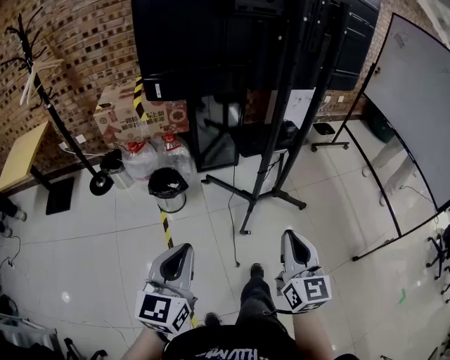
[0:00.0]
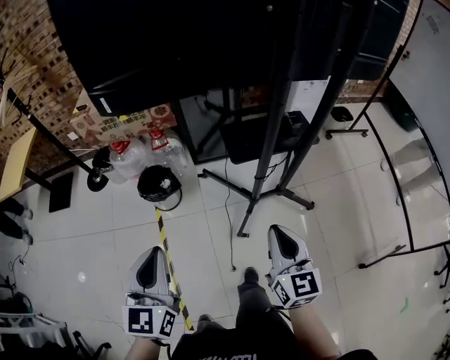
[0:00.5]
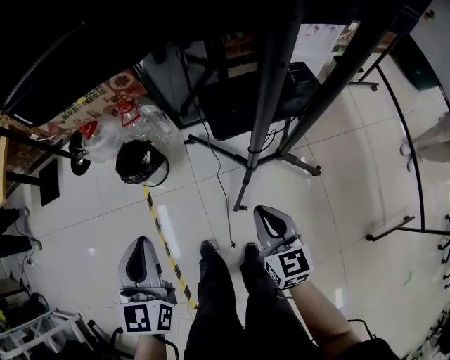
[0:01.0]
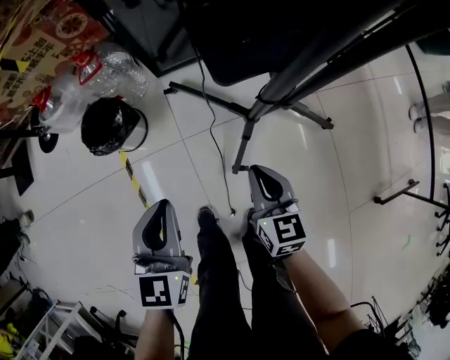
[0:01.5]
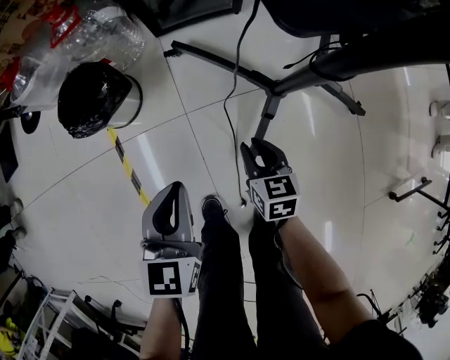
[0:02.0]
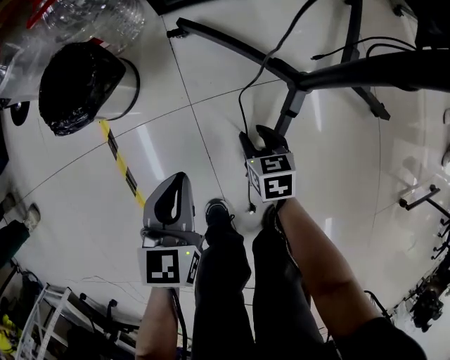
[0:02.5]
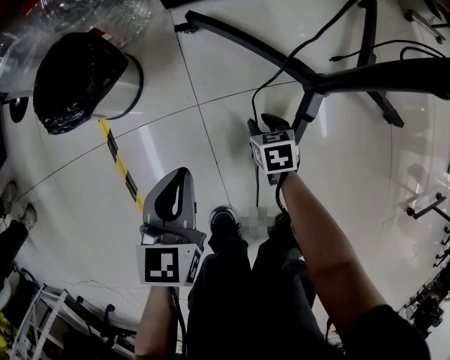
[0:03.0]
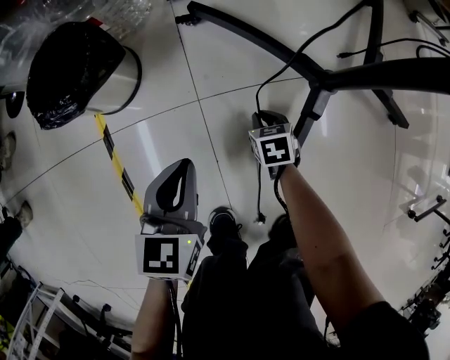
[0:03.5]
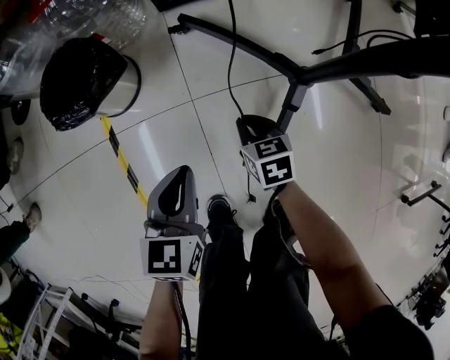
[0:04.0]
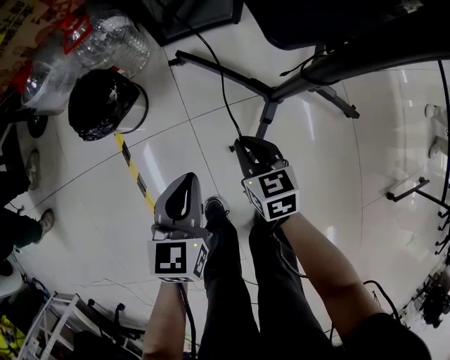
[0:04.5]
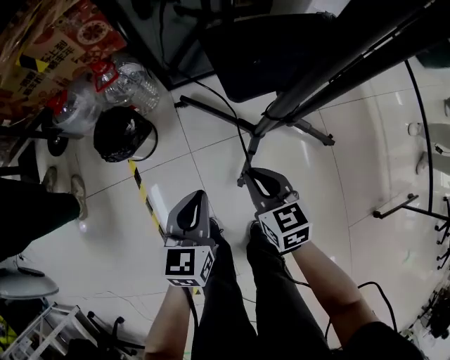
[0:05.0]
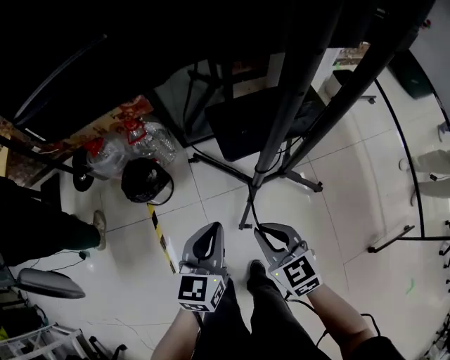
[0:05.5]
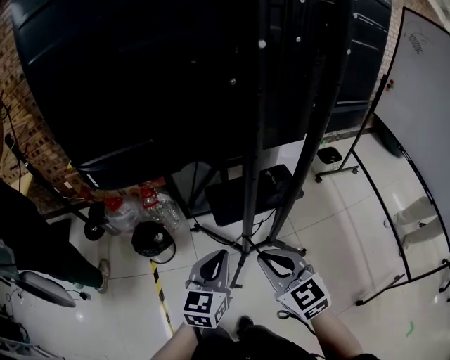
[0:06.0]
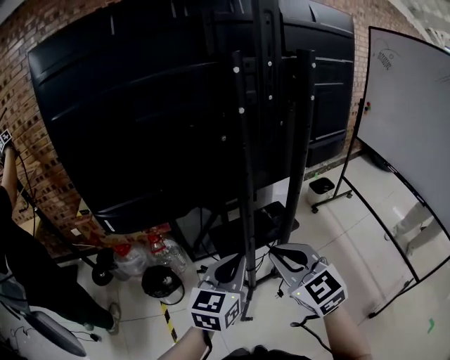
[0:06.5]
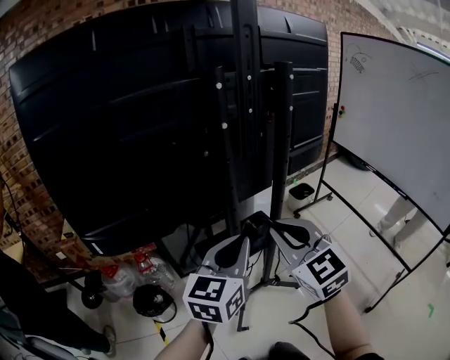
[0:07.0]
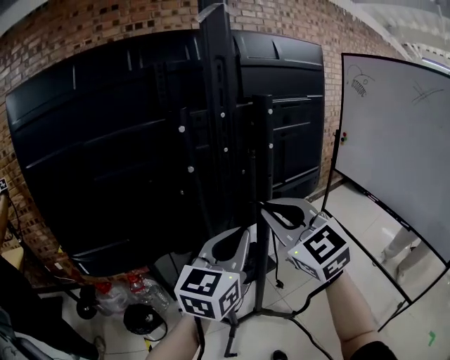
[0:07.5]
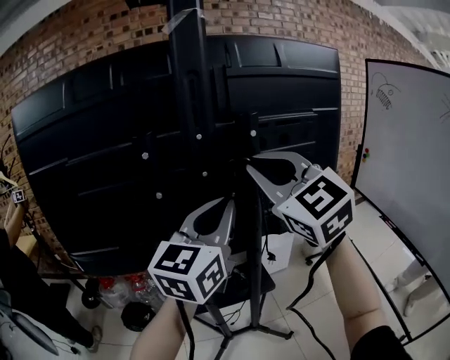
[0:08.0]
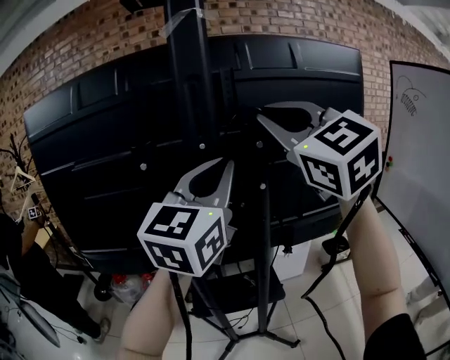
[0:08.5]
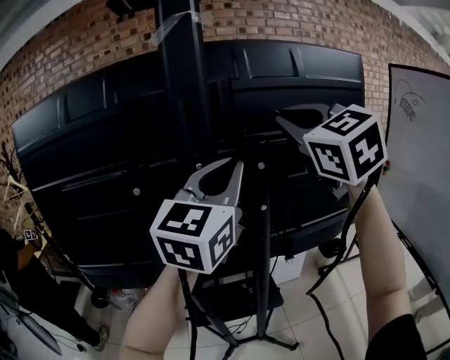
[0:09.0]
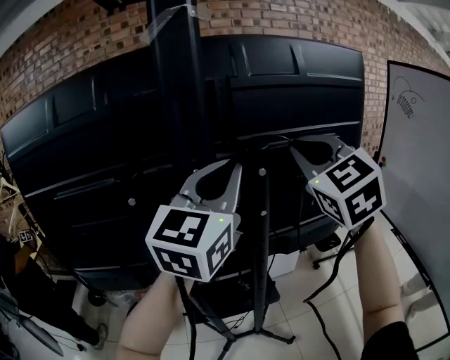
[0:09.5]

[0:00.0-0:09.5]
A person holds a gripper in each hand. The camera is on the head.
0:00.0 to 0:02.0: Both grippers move downward and forward, roughly 60 cm. The right gripper tips its fingers downward by about 40 degrees, and opens up. The left gripper changes its angle by approximately 20 degrees.
0:02.0 to 0:04.0: The right gripper travels downward and to the left by approximately 15 cm. Meanwhile the left gripper travels downward by about 15 cm.
0:04.0 to 0:05.5: The two grippers go roughly 40 cm upward. The right gripper rotates approximately 30 degrees.
0:05.5 to 0:07.5: The right gripper heads upward, covering approximately 50 cm, and swivels about 40 degrees, while the left gripper heads upward and to the right, covering about 50 cm, and rotates about 30 degrees.
0:07.5 to 0:09.5: The right gripper heads forward, upward and to the right, covering approximately 30 cm; the left gripper heads upward and forward, covering approximately 25 cm, and turns by some 20 degrees.

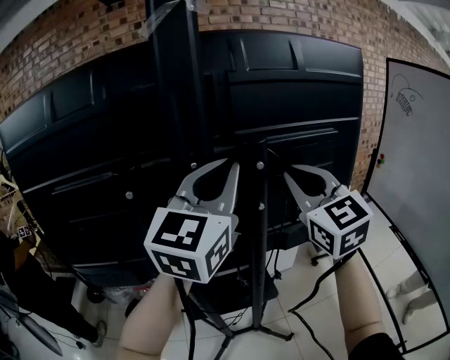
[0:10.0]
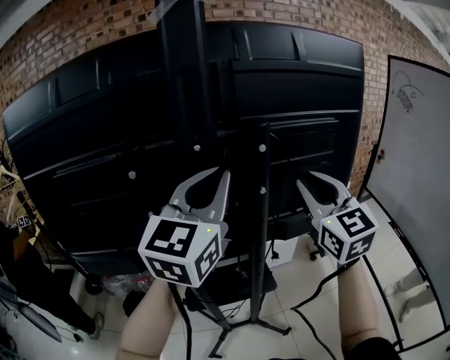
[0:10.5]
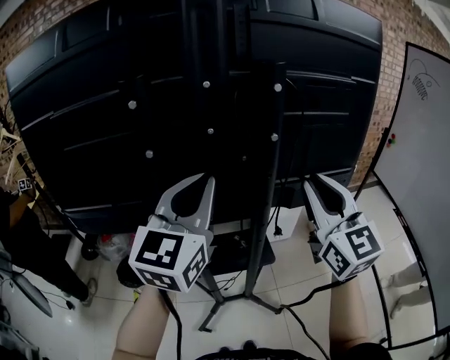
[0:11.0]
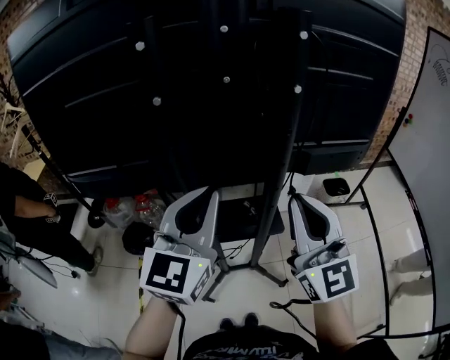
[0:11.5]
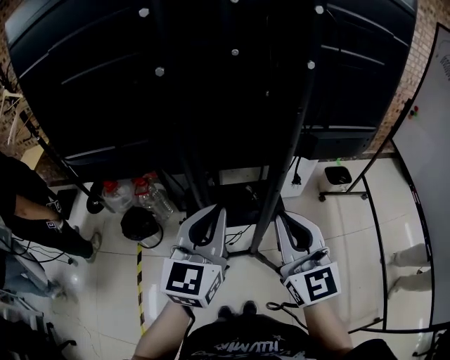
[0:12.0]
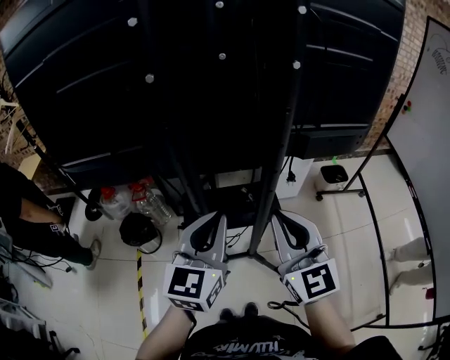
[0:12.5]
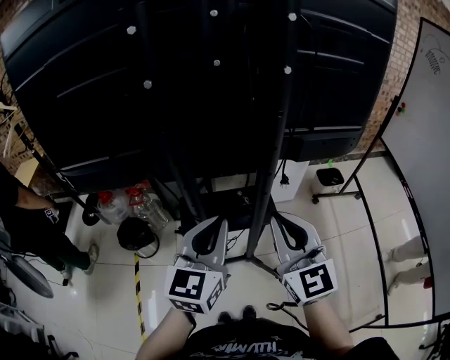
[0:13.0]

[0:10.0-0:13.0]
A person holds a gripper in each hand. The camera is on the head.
0:10.0 to 0:11.5: The left gripper moves downward, backward and to the left, roughly 25 cm, while the right gripper is displaced downward and backward by roughly 25 cm.
0:11.5 to 0:13.0: The two grippers go about 10 cm downward.

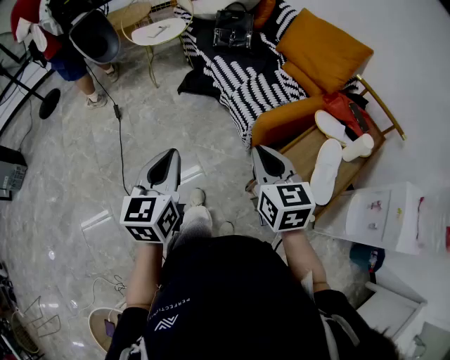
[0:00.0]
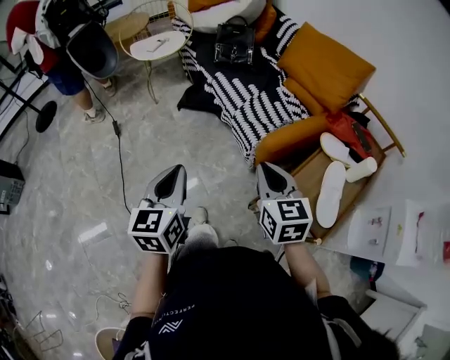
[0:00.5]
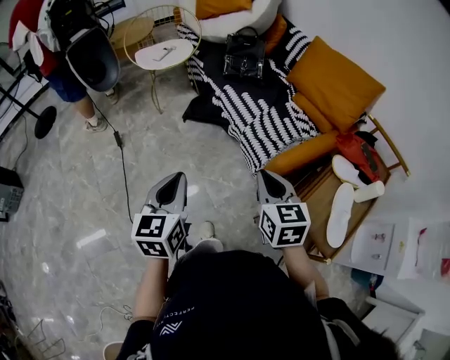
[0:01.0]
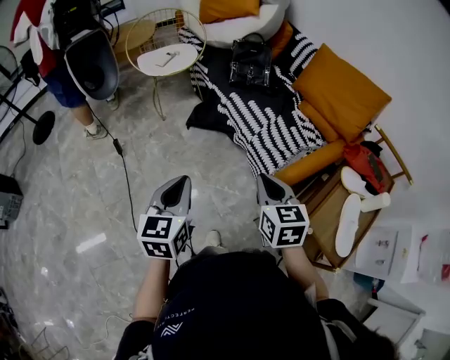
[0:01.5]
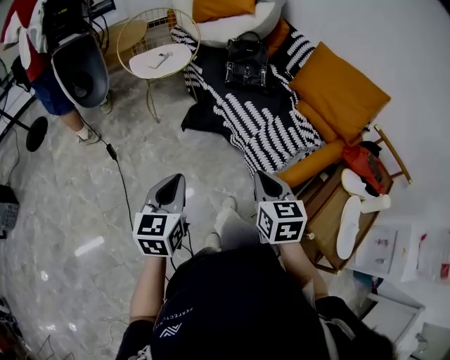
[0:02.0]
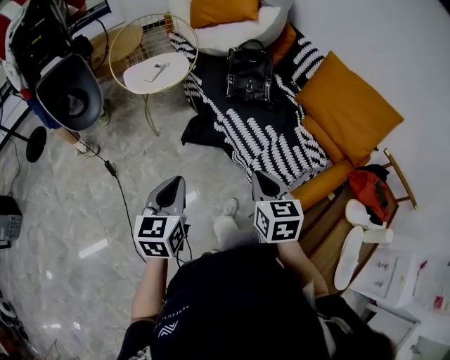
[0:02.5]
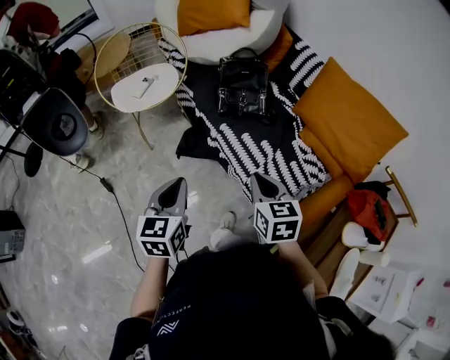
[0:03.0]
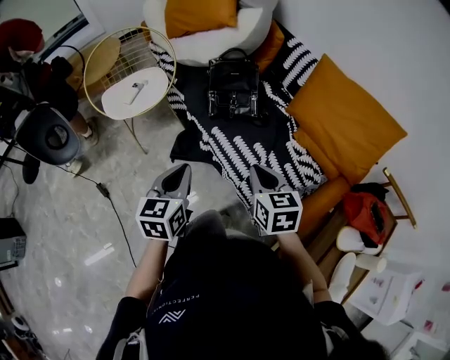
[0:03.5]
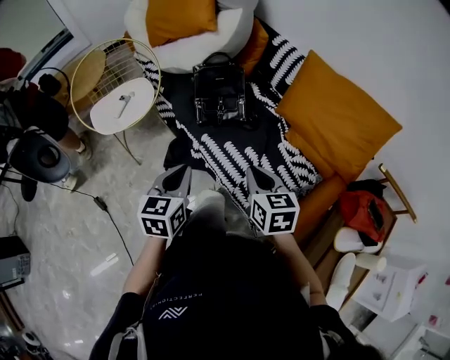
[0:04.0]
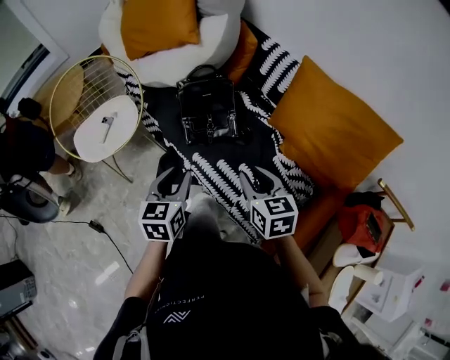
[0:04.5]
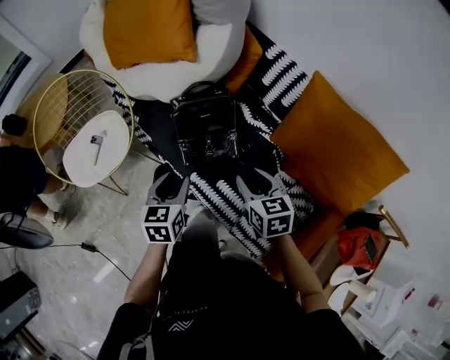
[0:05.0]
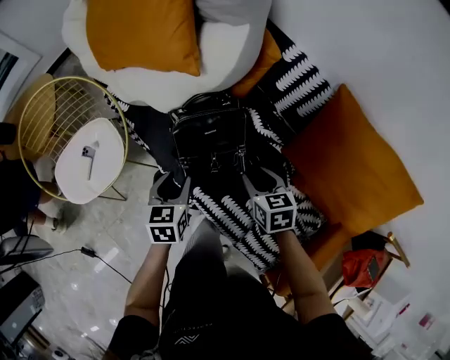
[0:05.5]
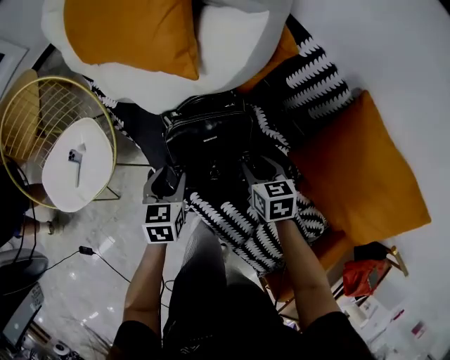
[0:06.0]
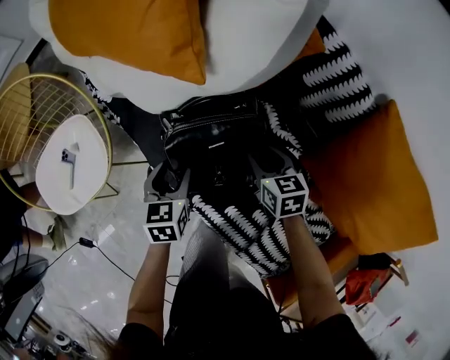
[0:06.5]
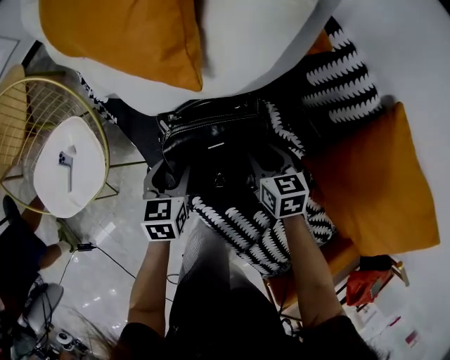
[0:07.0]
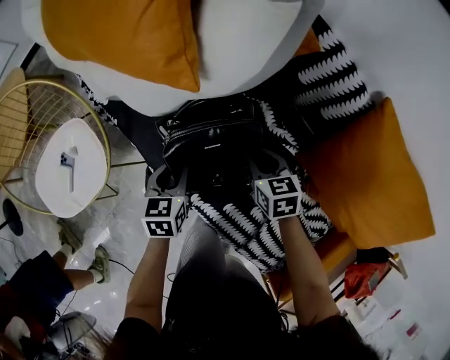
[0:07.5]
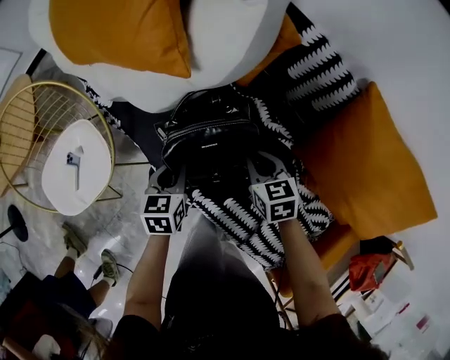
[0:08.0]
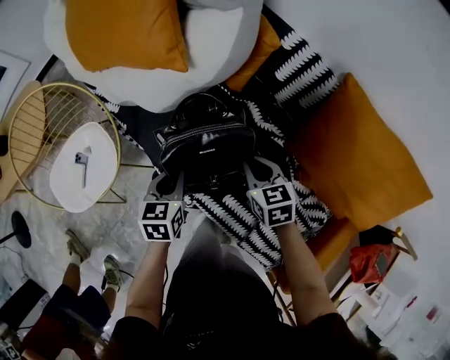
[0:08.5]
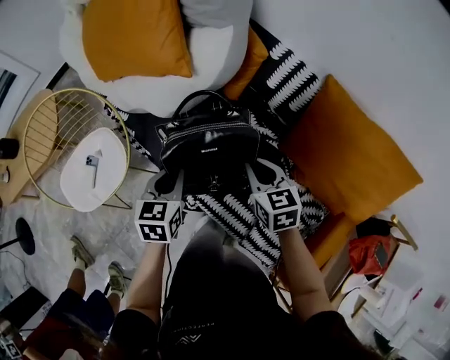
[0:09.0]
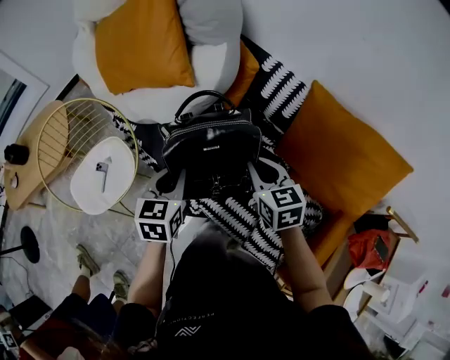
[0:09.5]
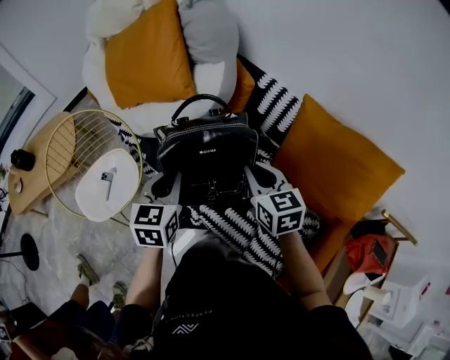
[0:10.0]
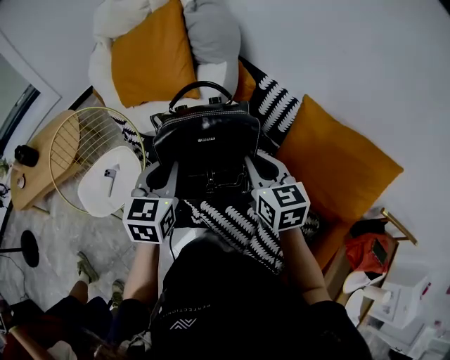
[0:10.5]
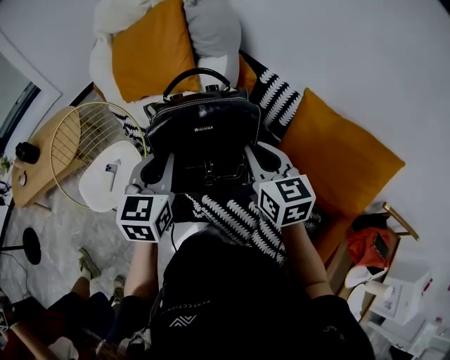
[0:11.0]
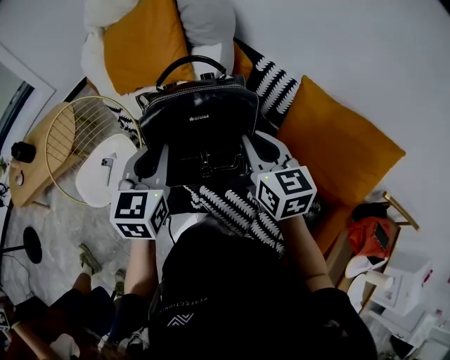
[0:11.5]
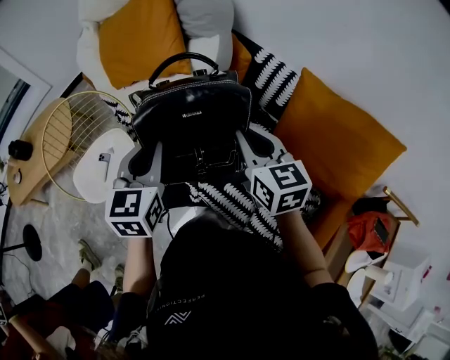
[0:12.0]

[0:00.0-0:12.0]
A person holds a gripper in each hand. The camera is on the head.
0:00.0 to 0:02.0: The grippers both shift forward and to the left by some 25 cm.
0:02.0 to 0:04.0: Both grippers move forward, approximately 35 cm.
0:04.0 to 0:06.0: The grippers both shift forward and downward by some 40 cm. The left gripper opens. Meanwhile the right gripper opens its fingers.
0:06.0 to 0:08.0: The right gripper closes. Meanwhile the left gripper closes up.
0:08.0 to 0:10.0: The two grippers go approximately 25 cm upward. The left gripper turns by some 20 degrees. Meanwhile the right gripper turns by some 20 degrees.
0:10.0 to 0:12.0: The grippers both shift upward by approximately 5 cm.

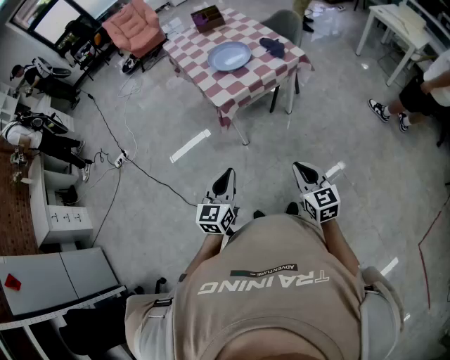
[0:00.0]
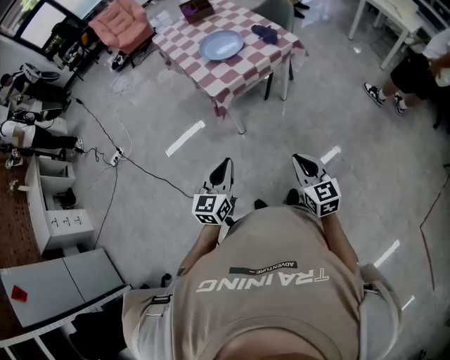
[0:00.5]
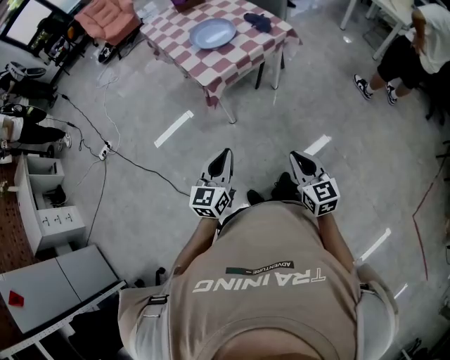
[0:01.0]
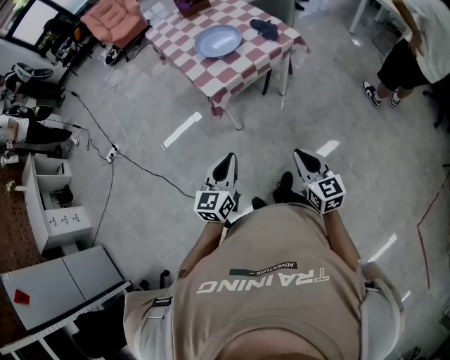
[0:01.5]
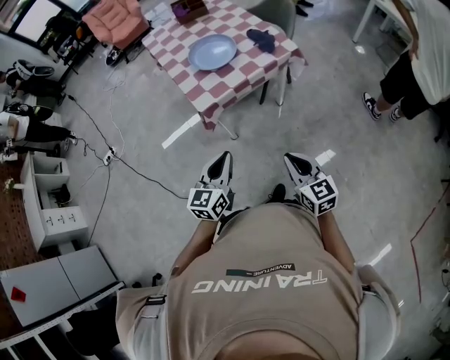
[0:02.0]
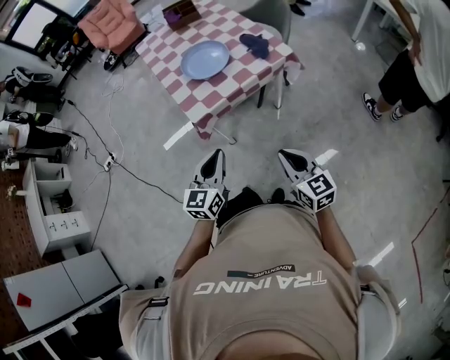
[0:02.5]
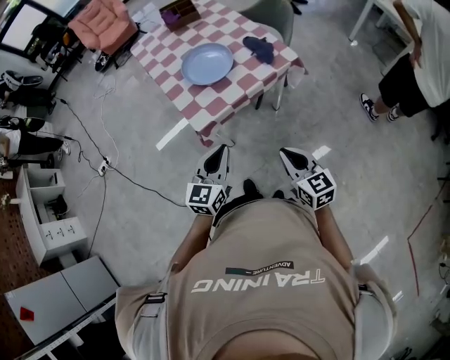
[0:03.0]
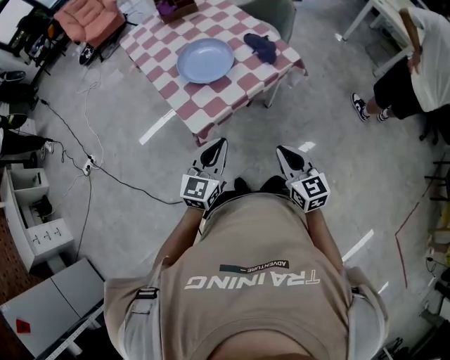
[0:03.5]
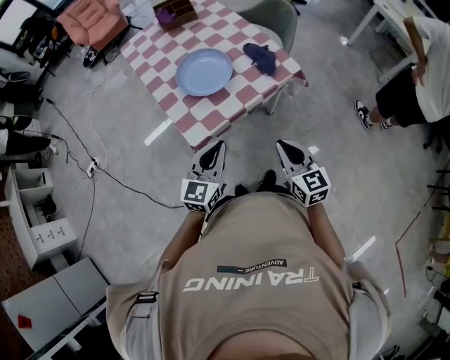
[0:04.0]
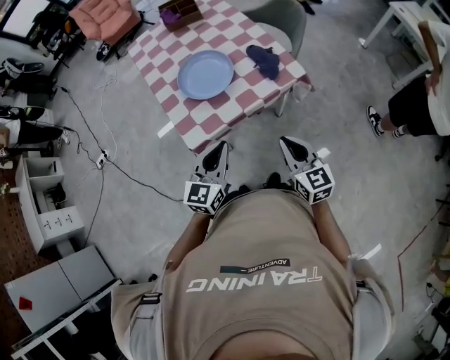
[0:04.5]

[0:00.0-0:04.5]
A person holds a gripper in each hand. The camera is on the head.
0:00.0 to 0:02.0: The right gripper goes approximately 10 cm forward; the left gripper moves forward and to the right, roughly 15 cm.
0:02.0 to 0:04.5: Both grippers move forward, some 25 cm.
